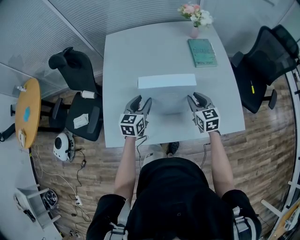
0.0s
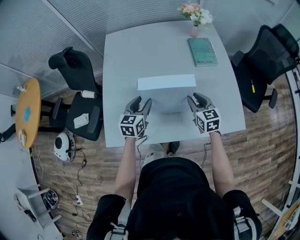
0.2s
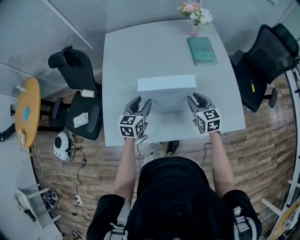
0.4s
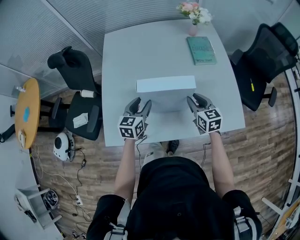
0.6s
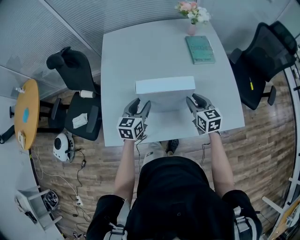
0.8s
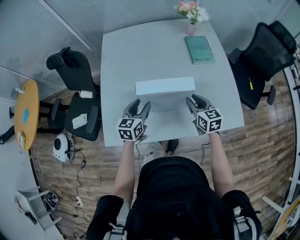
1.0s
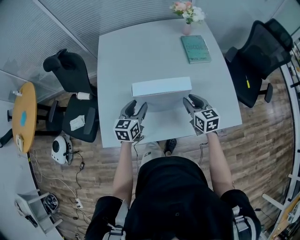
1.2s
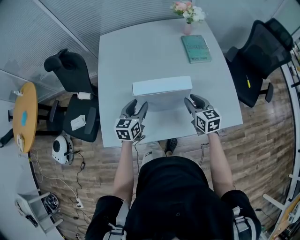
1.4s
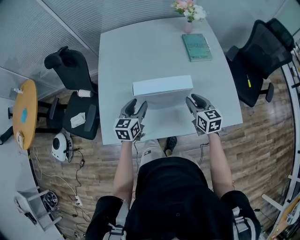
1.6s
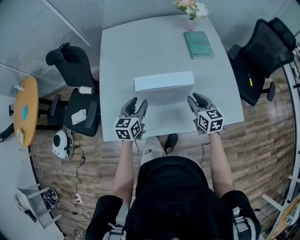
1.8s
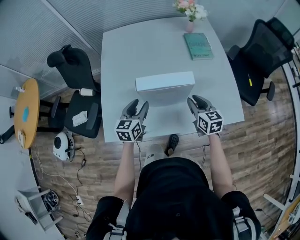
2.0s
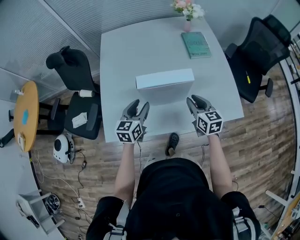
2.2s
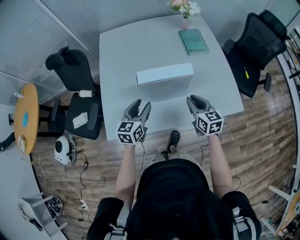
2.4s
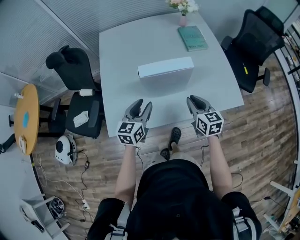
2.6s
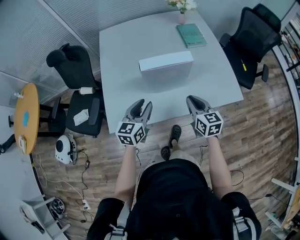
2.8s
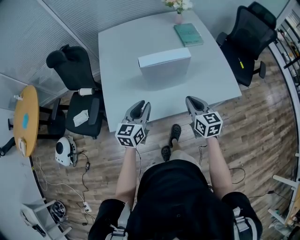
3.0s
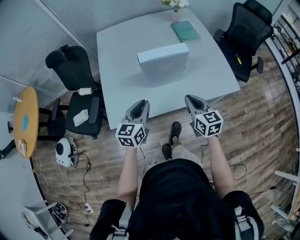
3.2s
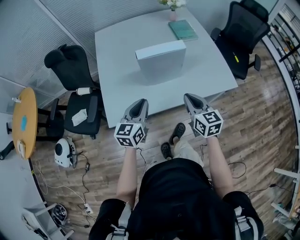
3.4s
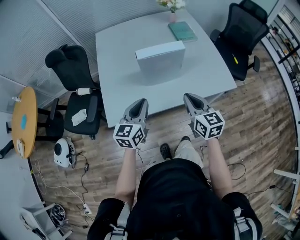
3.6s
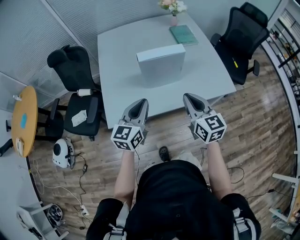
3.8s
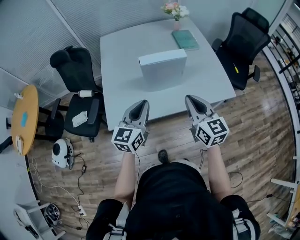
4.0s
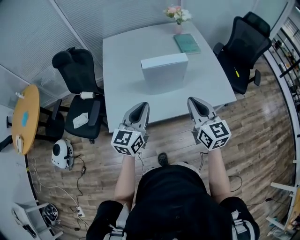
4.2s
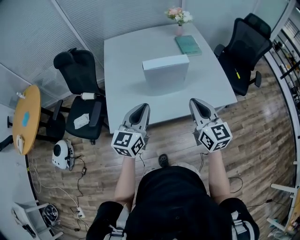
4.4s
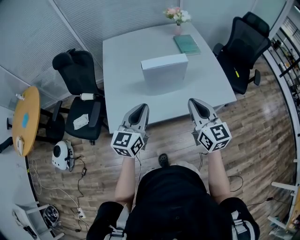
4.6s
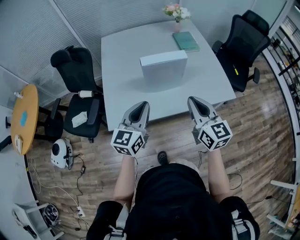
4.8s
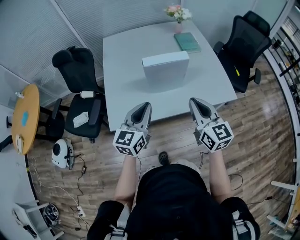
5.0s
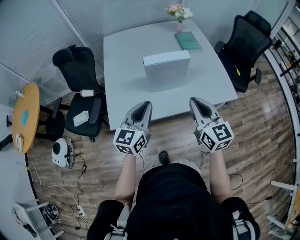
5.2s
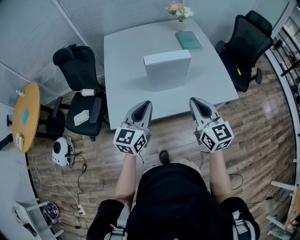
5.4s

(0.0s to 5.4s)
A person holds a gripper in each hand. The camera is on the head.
0.0s - 1.4s: There are only small adjustments of the grippers.
1.4s - 2.8s: Both grippers move backward, some 15 cm.
2.8s - 4.0s: The right gripper shifts about 15 cm upward and backward. Meanwhile the left gripper heads backward and upward, covering roughly 15 cm, and closes its fingers.
4.0s - 5.4s: There are only small adjustments of the grippers.

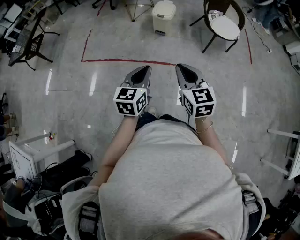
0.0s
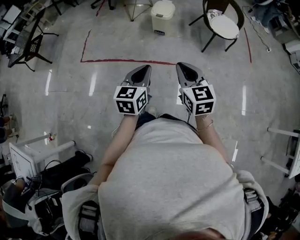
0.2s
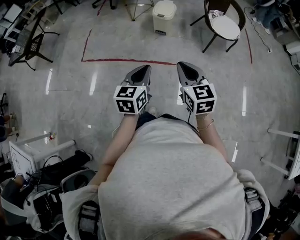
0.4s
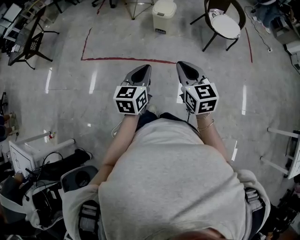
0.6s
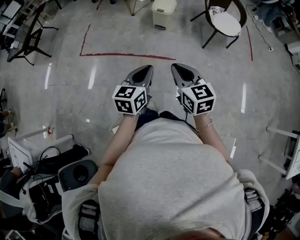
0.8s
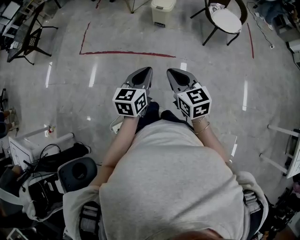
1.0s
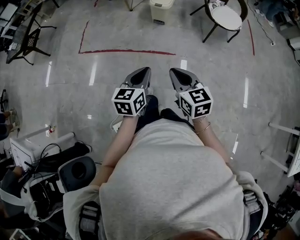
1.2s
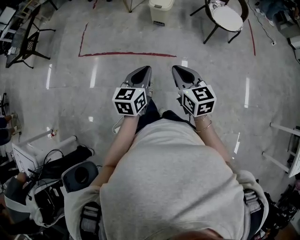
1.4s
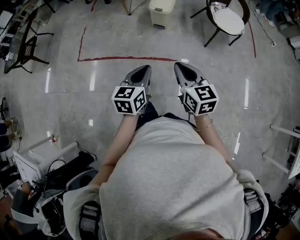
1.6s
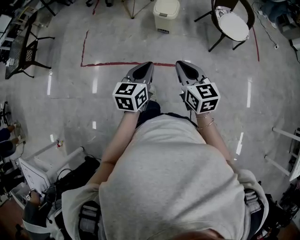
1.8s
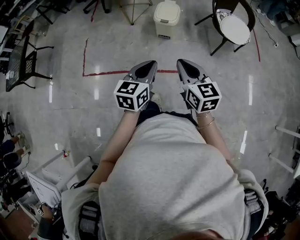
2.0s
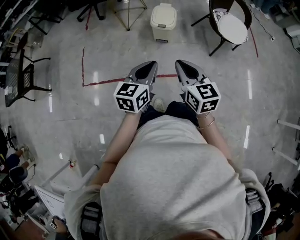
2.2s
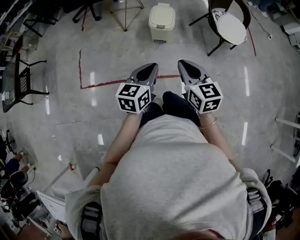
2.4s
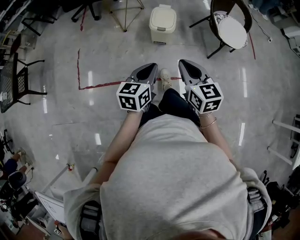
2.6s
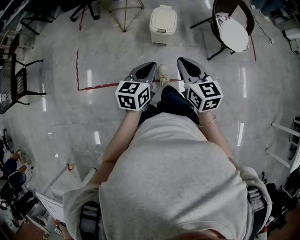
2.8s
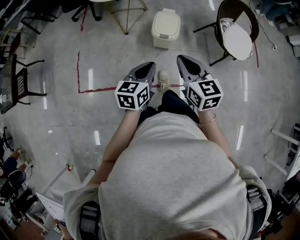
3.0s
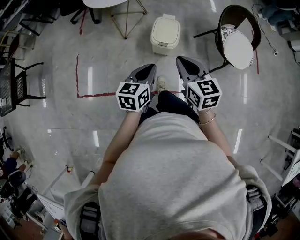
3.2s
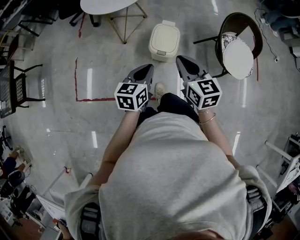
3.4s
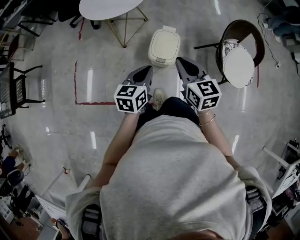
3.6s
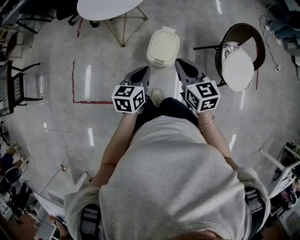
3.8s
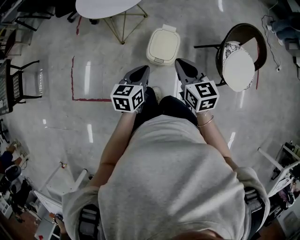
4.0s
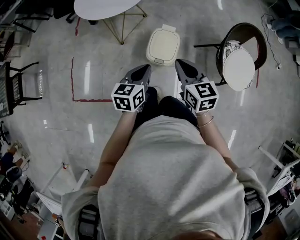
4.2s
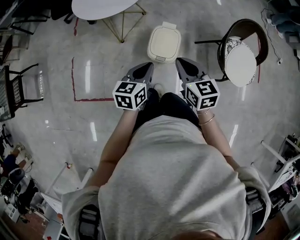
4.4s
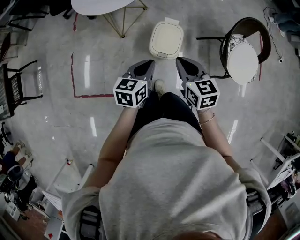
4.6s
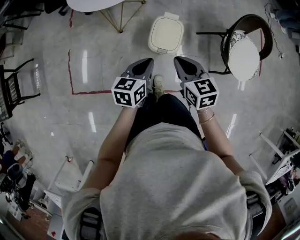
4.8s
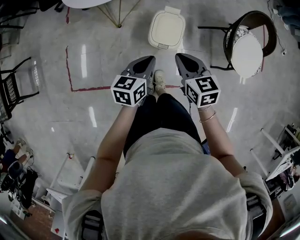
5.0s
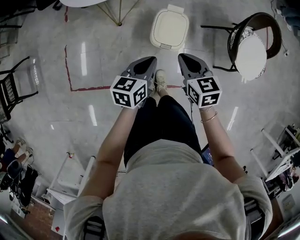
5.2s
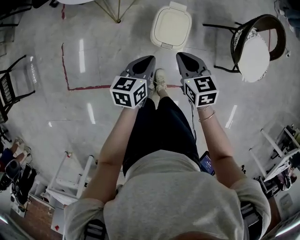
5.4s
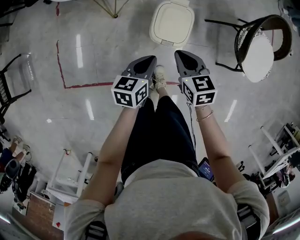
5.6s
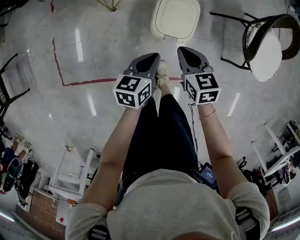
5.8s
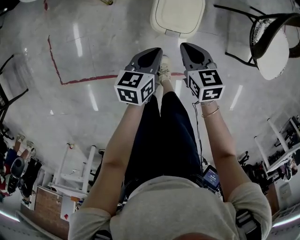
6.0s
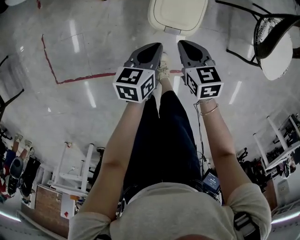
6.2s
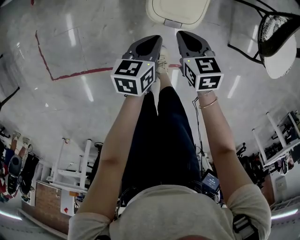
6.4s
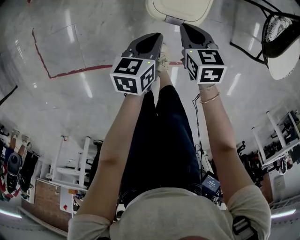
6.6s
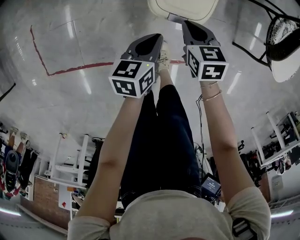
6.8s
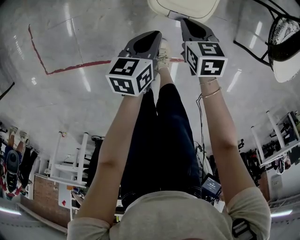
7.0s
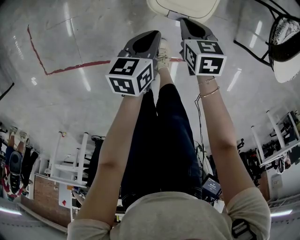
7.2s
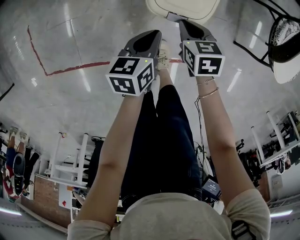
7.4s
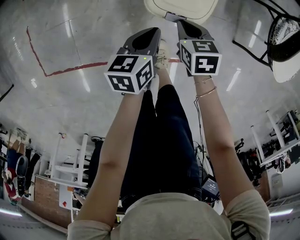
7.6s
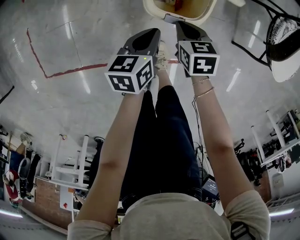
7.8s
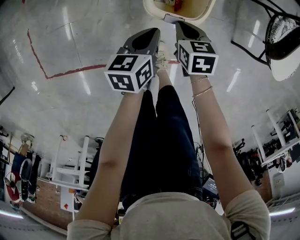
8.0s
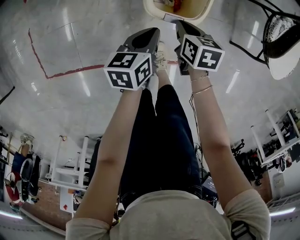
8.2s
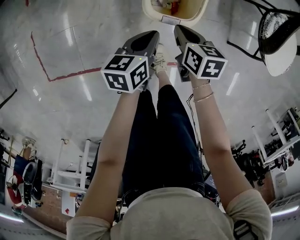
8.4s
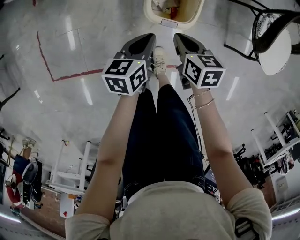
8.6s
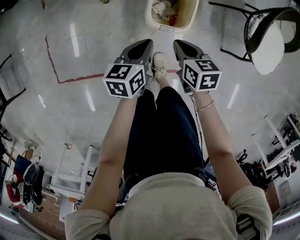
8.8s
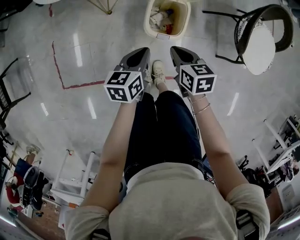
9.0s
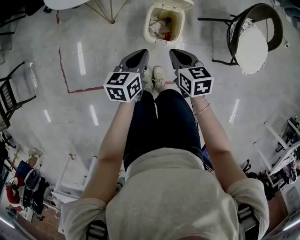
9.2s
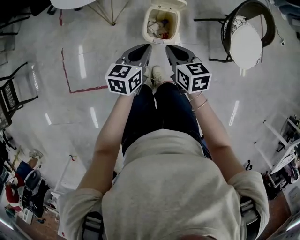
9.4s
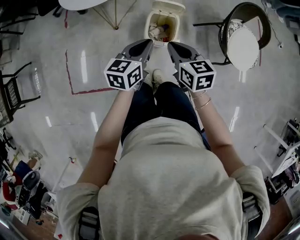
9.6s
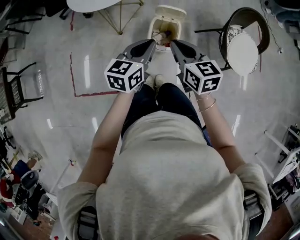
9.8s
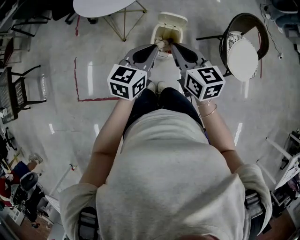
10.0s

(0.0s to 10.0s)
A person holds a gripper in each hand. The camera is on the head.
0.0s - 1.4s: The right gripper heads downward, covering about 5 cm. The left gripper shifts by roughly 5 cm.
1.4s - 2.8s: The two grippers go some 40 cm forward.
2.8s - 4.2s: Both grippers move forward, roughly 30 cm.
4.2s - 5.8s: The grippers both shift downward by about 25 cm.
5.8s - 7.2s: Both grippers move downward, some 20 cm.
7.2s - 8.6s: Both grippers move upward, approximately 10 cm.
8.6s - 10.0s: The grippers both shift upward by approximately 35 cm. The right gripper turns by about 30 degrees; the left gripper rotates roughly 30 degrees.

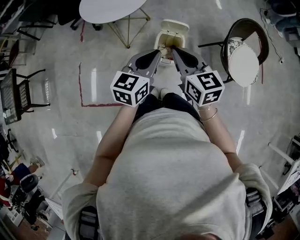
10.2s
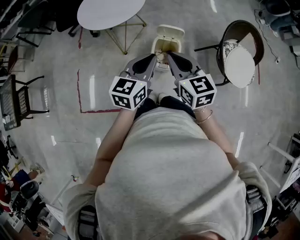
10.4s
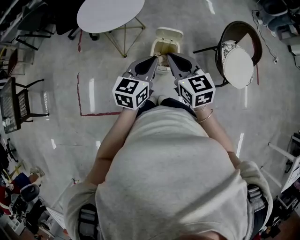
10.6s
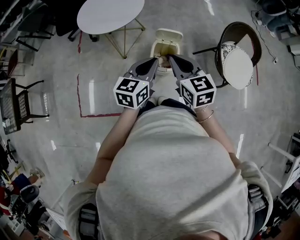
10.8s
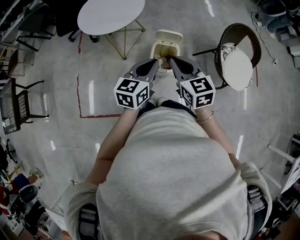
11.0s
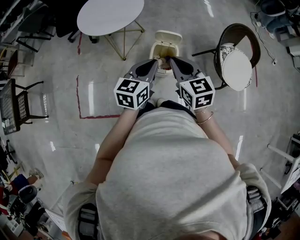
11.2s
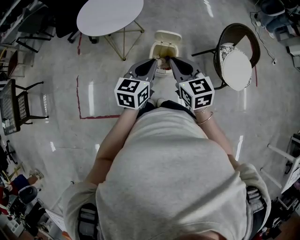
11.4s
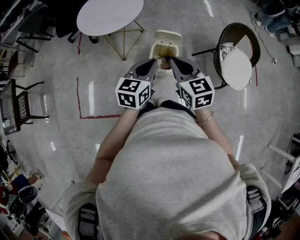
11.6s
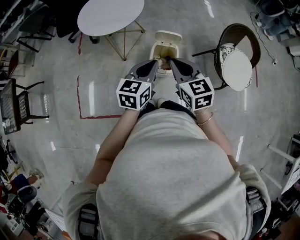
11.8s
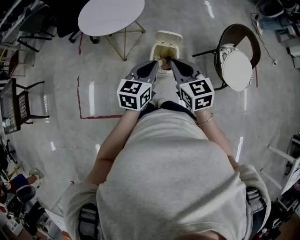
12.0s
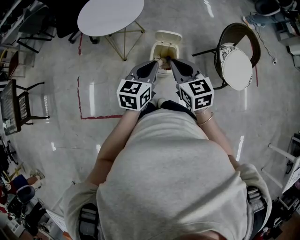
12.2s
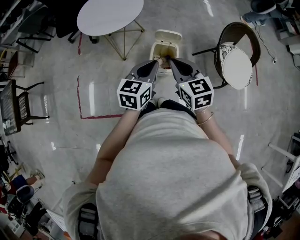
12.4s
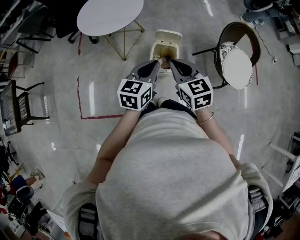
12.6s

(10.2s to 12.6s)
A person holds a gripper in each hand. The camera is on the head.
10.2s - 12.6s: The grippers stay close to where they were, moving slightly.

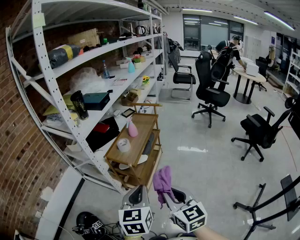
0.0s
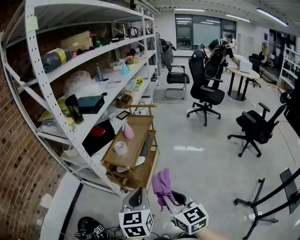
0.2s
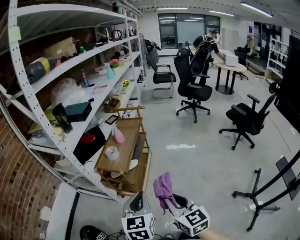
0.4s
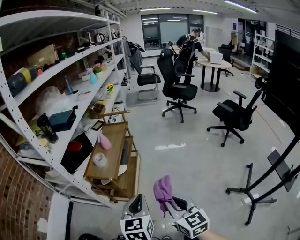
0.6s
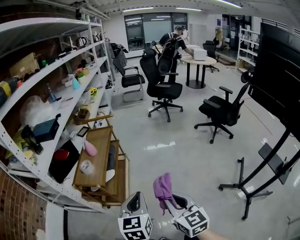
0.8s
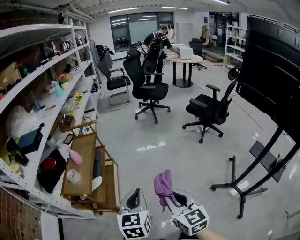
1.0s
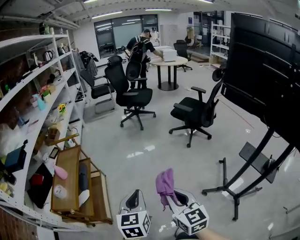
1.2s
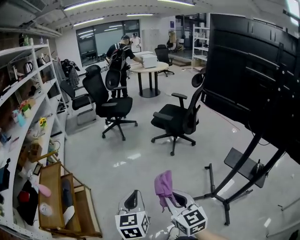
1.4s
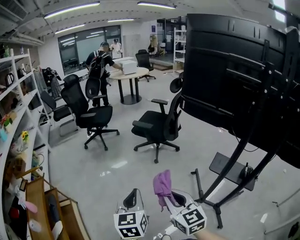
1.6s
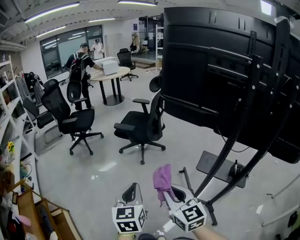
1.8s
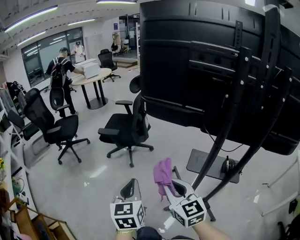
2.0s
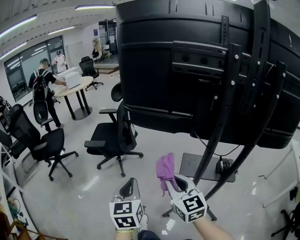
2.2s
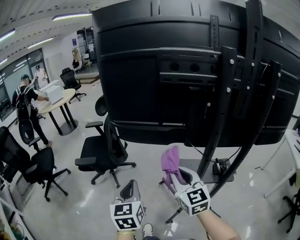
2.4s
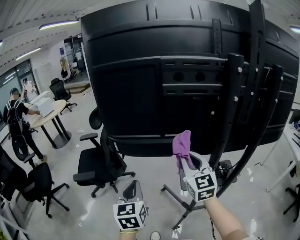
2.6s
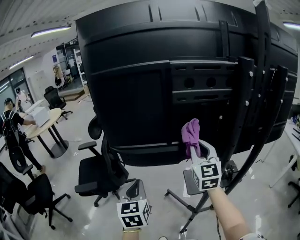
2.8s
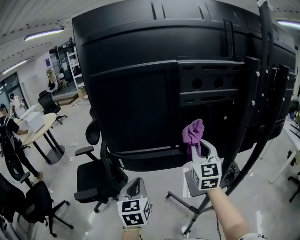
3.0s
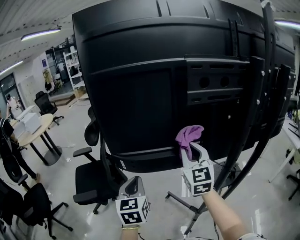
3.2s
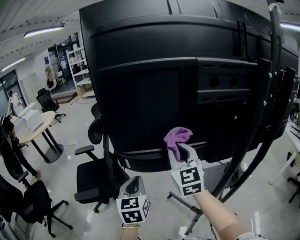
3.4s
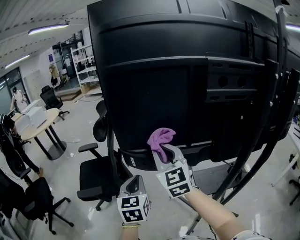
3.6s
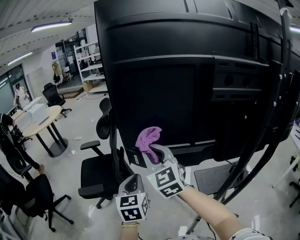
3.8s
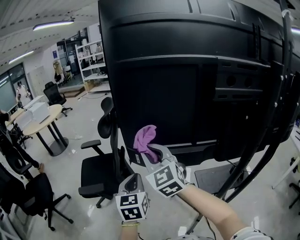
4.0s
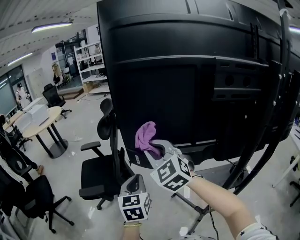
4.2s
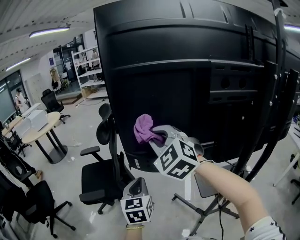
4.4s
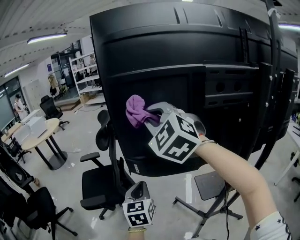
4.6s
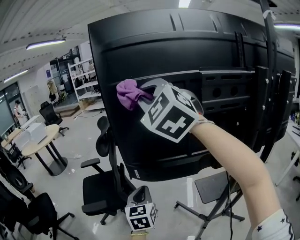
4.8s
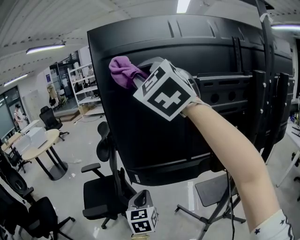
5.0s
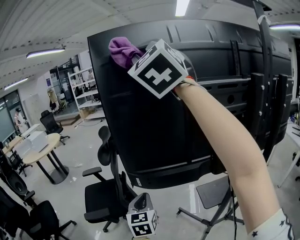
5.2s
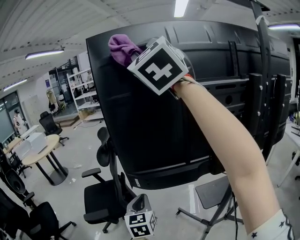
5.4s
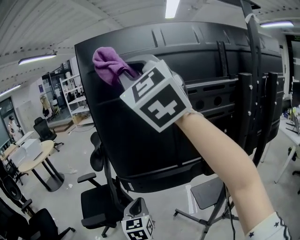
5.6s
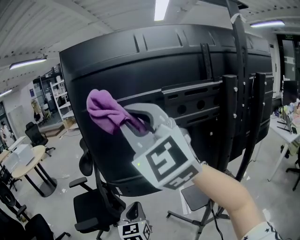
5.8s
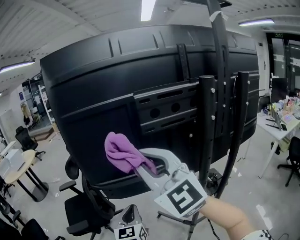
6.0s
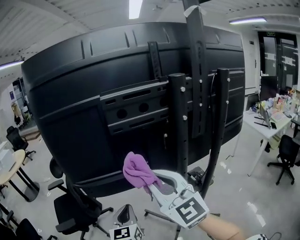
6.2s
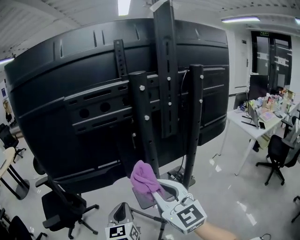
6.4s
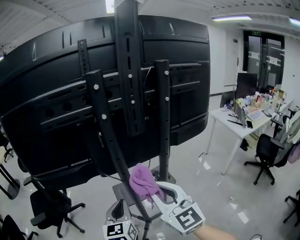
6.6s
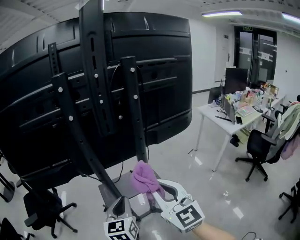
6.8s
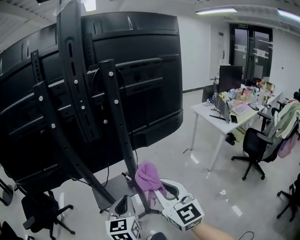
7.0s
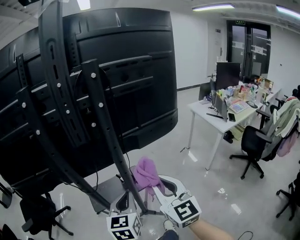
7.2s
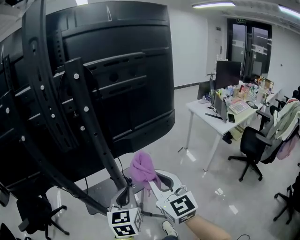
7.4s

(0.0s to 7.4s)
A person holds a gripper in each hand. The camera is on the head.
0.0s - 1.4s: Both grippers are carried approximately 50 cm. The left gripper turns by approximately 40 degrees, while the right gripper turns by roughly 40 degrees.
1.4s - 3.0s: The pair of grippers is taken some 70 cm. The left gripper changes its angle by approximately 60 degrees, while the right gripper changes its angle by approximately 80 degrees.
3.0s - 4.4s: The right gripper goes approximately 25 cm to the left, and rotates roughly 50 degrees, while the left gripper moves to the left, roughly 5 cm.
4.4s - 6.0s: The right gripper moves backward and to the right, roughly 20 cm, travels upward and back again, about 35 cm each way, and turns by approximately 30 degrees. The left gripper moves to the right and backward, about 10 cm.
6.0s - 7.4s: The pair of grippers is taken to the right, roughly 60 cm. The right gripper heads downward, covering some 25 cm, and turns by some 40 degrees, while the left gripper rotates about 20 degrees.
